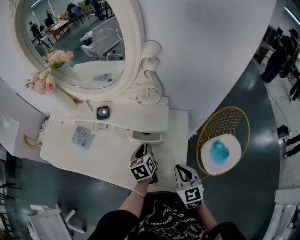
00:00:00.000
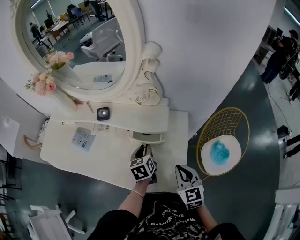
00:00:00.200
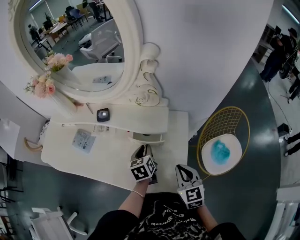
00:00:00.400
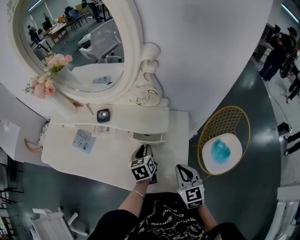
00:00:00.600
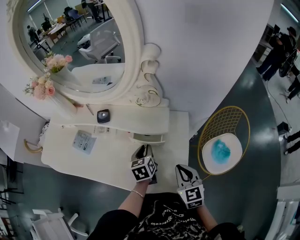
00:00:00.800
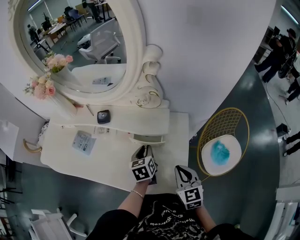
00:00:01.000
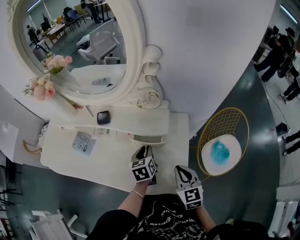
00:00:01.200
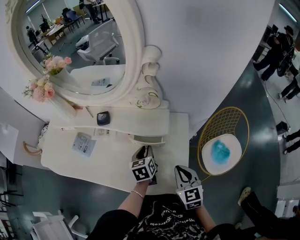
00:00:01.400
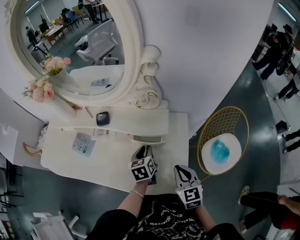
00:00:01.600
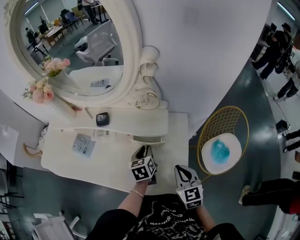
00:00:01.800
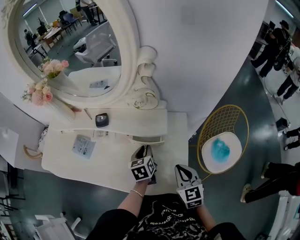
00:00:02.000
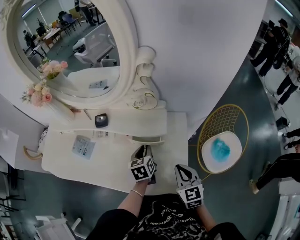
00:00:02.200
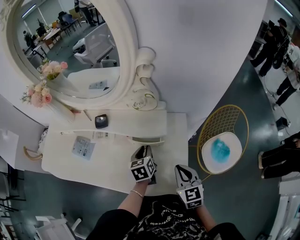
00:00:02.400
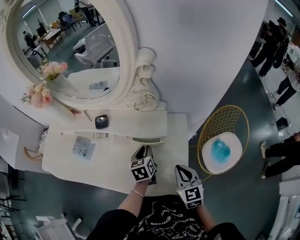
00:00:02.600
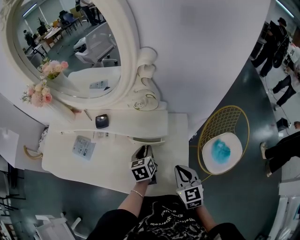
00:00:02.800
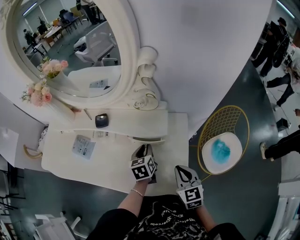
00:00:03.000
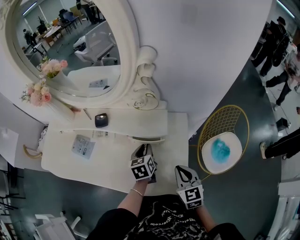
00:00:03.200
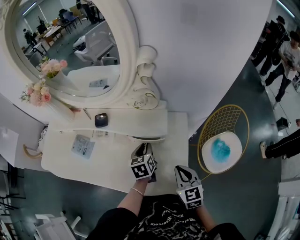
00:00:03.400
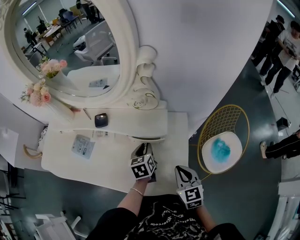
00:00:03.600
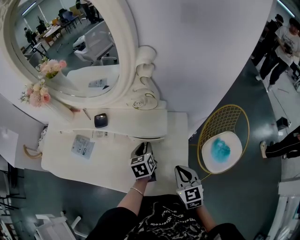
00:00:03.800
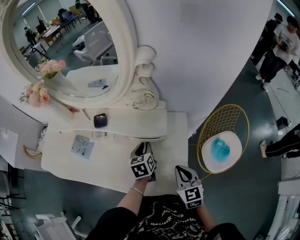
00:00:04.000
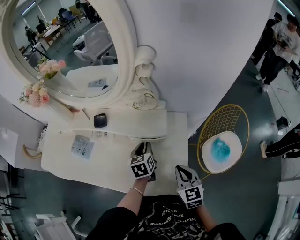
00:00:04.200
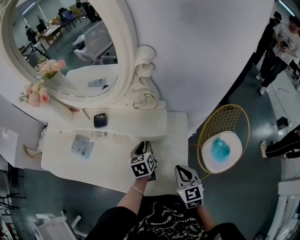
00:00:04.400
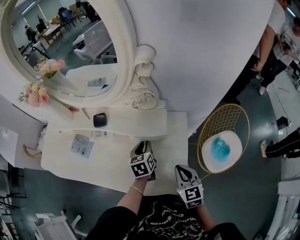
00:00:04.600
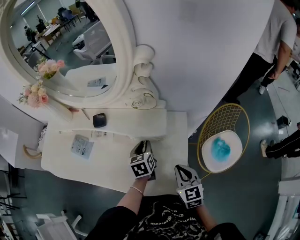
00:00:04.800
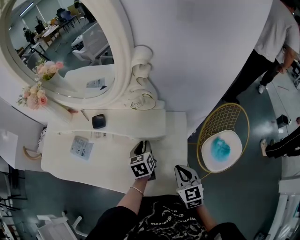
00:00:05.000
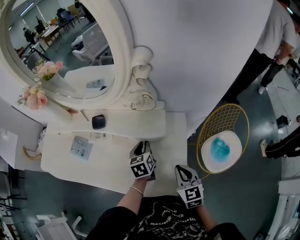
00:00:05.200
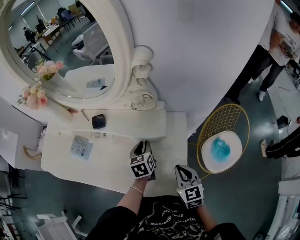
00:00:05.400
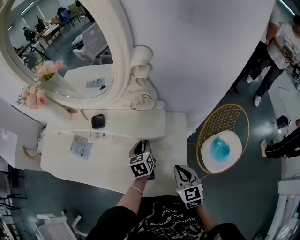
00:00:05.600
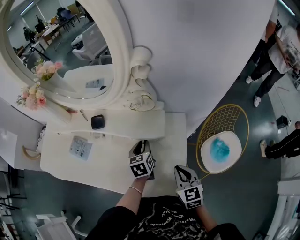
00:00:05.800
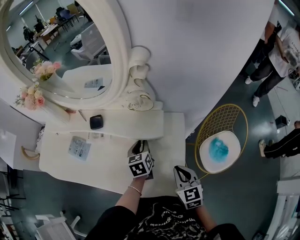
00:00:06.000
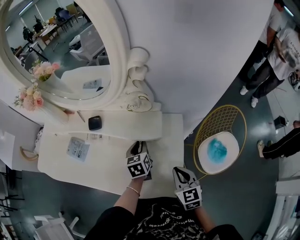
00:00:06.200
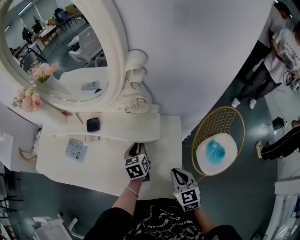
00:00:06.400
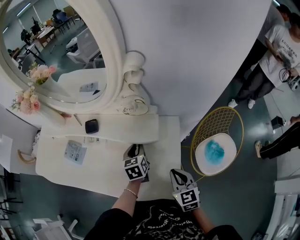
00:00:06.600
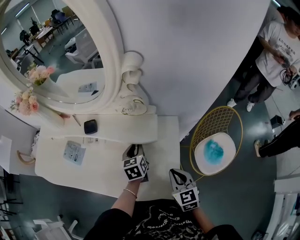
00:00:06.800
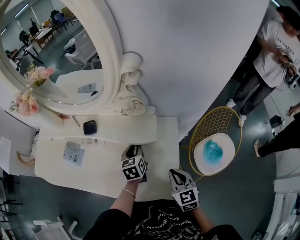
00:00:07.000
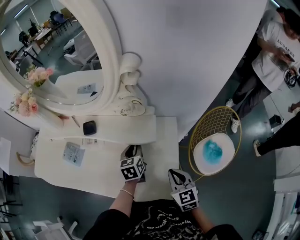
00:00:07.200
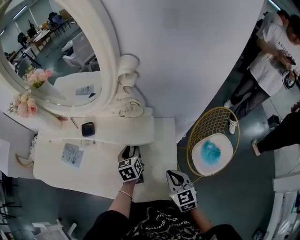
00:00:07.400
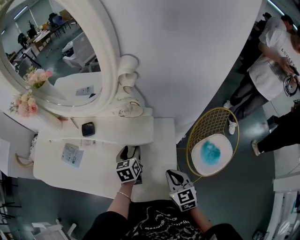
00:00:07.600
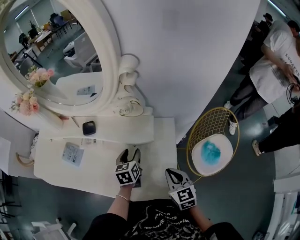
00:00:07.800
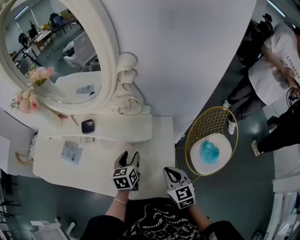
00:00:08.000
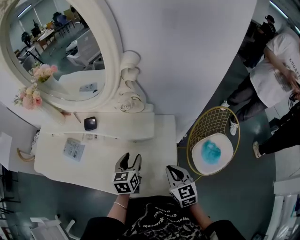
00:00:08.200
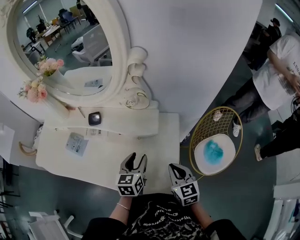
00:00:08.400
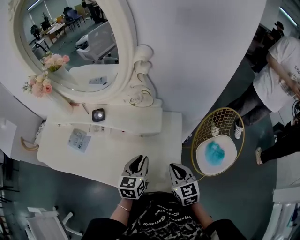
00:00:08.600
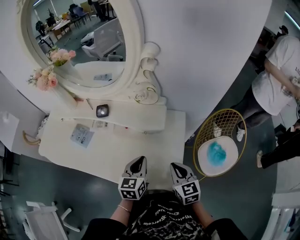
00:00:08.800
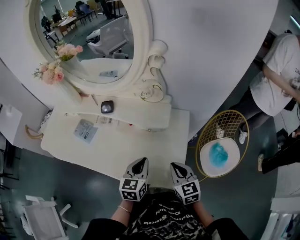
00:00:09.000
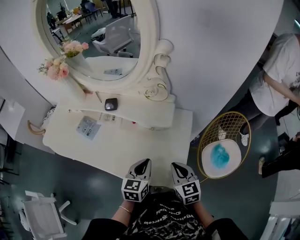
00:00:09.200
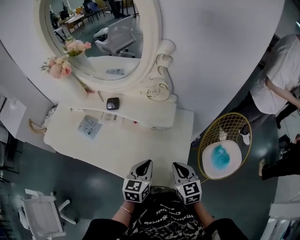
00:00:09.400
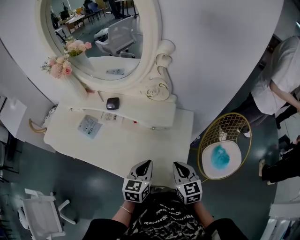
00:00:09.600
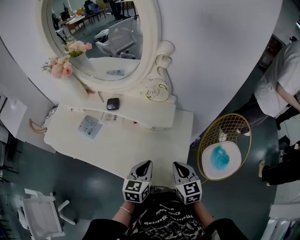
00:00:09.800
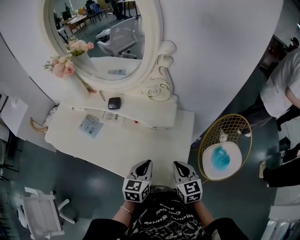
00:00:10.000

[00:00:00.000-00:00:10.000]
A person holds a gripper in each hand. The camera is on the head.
00:00:00.000 to 00:00:01.400: The grippers make only small movements.
00:00:01.400 to 00:00:02.800: The two grippers keep their place.
00:00:02.800 to 00:00:04.200: Both grippers stay put.
00:00:04.200 to 00:00:05.800: The two grippers keep their place.
00:00:05.800 to 00:00:07.200: Both grippers stay about where they are.
00:00:07.200 to 00:00:08.600: The left gripper travels backward by some 10 cm, and opens and closes again.
00:00:08.600 to 00:00:10.000: The left gripper shifts some 5 cm backward.

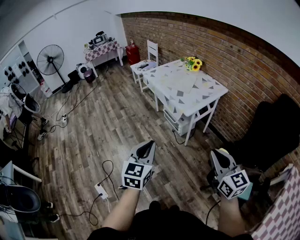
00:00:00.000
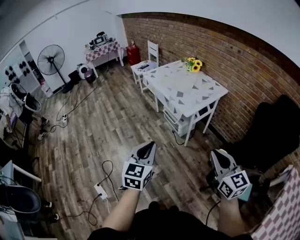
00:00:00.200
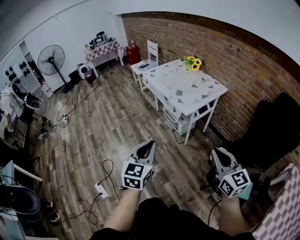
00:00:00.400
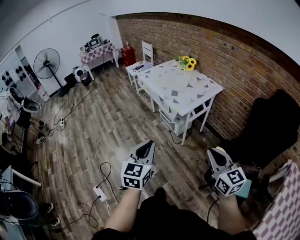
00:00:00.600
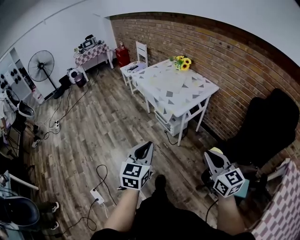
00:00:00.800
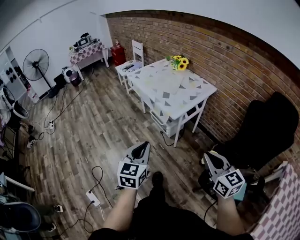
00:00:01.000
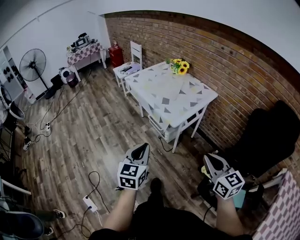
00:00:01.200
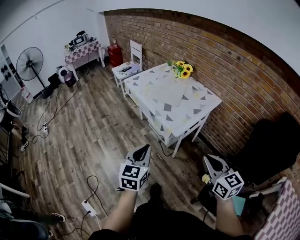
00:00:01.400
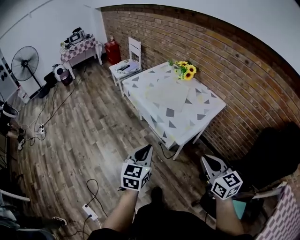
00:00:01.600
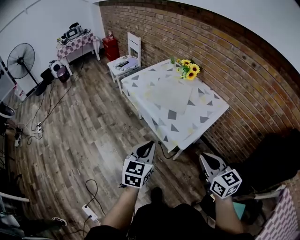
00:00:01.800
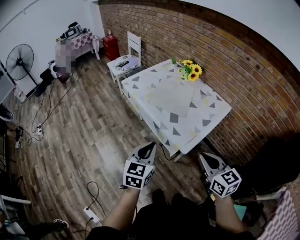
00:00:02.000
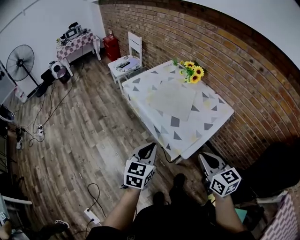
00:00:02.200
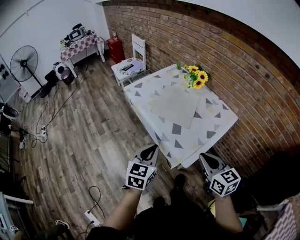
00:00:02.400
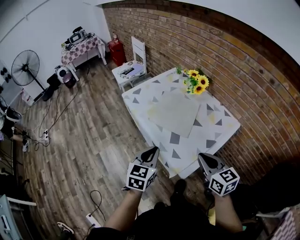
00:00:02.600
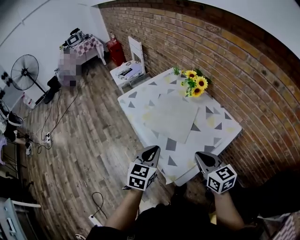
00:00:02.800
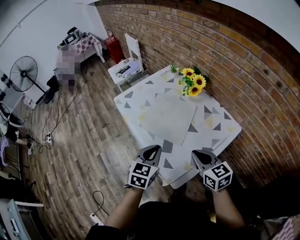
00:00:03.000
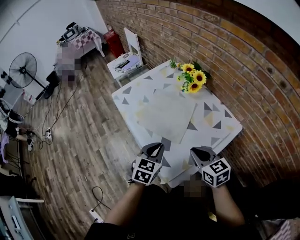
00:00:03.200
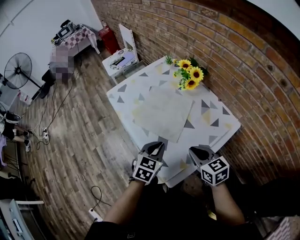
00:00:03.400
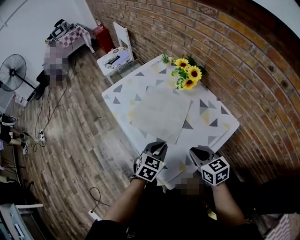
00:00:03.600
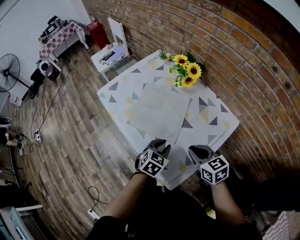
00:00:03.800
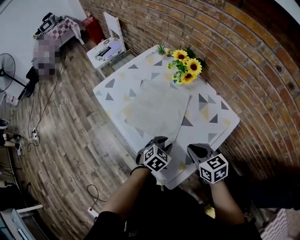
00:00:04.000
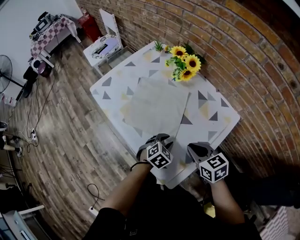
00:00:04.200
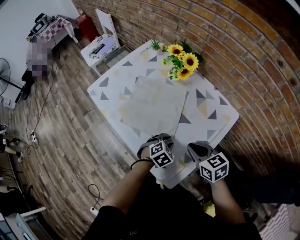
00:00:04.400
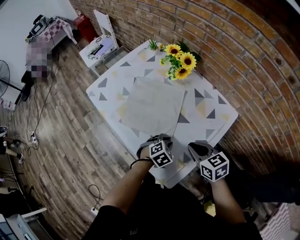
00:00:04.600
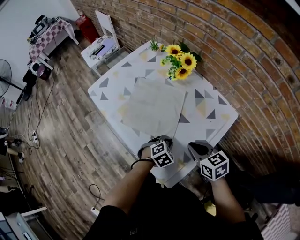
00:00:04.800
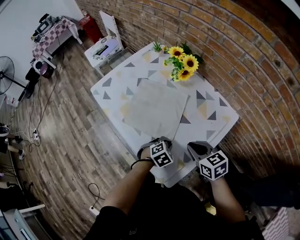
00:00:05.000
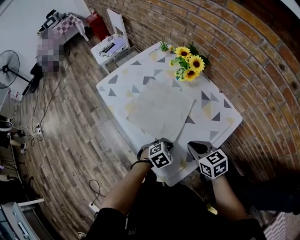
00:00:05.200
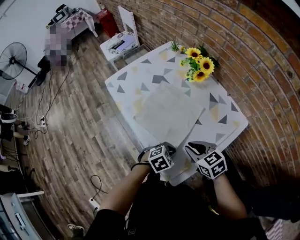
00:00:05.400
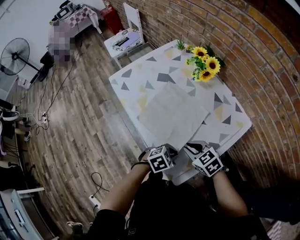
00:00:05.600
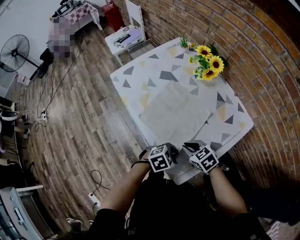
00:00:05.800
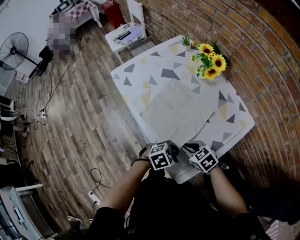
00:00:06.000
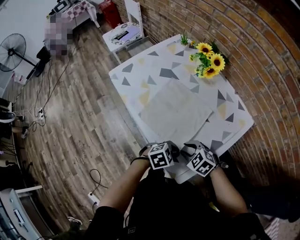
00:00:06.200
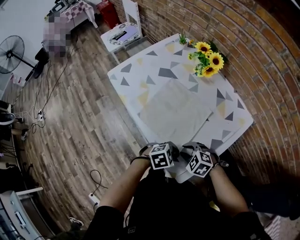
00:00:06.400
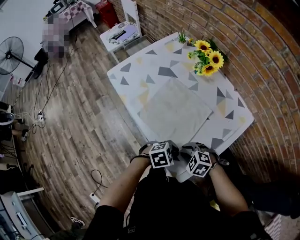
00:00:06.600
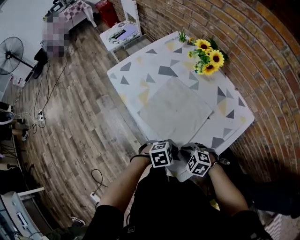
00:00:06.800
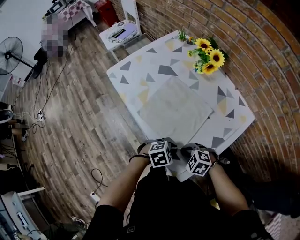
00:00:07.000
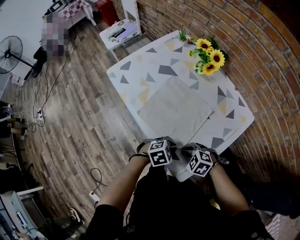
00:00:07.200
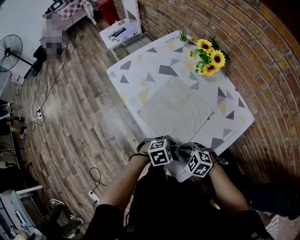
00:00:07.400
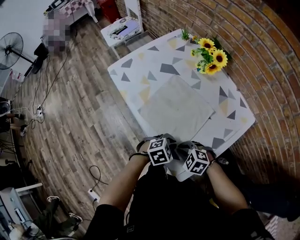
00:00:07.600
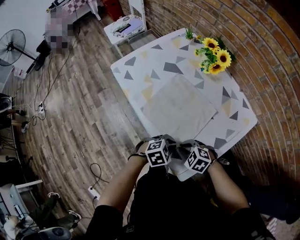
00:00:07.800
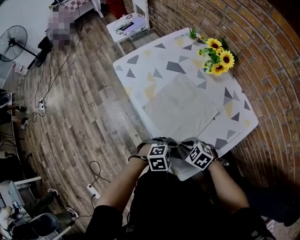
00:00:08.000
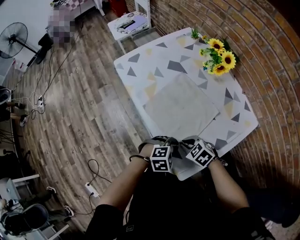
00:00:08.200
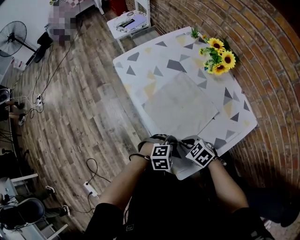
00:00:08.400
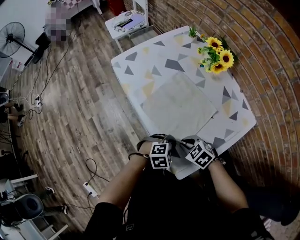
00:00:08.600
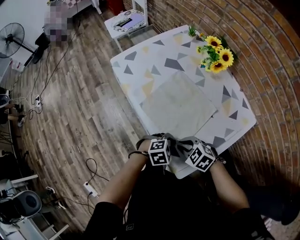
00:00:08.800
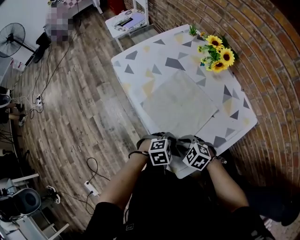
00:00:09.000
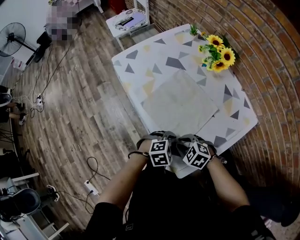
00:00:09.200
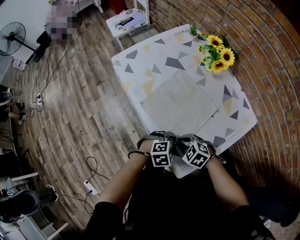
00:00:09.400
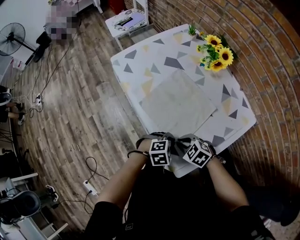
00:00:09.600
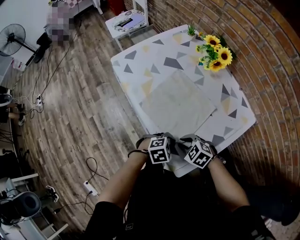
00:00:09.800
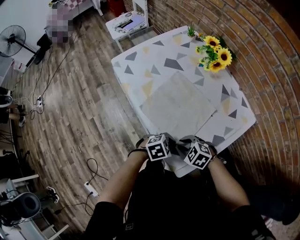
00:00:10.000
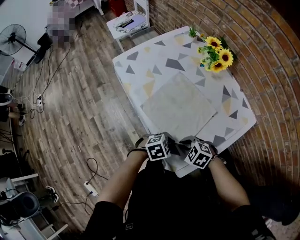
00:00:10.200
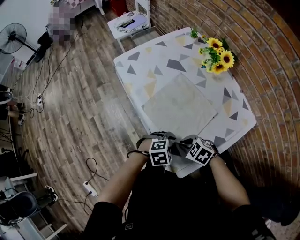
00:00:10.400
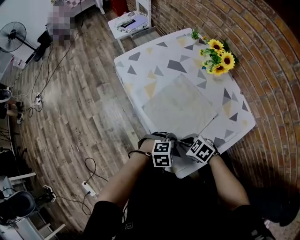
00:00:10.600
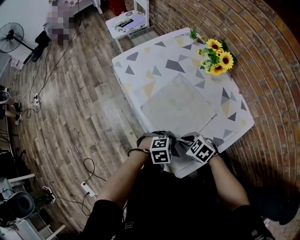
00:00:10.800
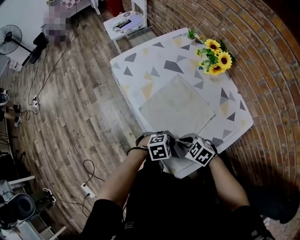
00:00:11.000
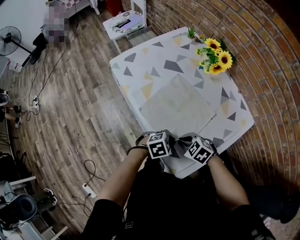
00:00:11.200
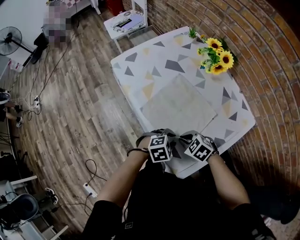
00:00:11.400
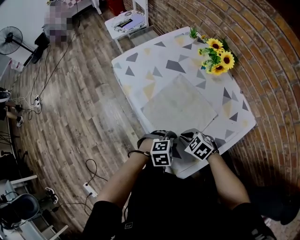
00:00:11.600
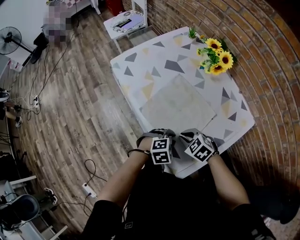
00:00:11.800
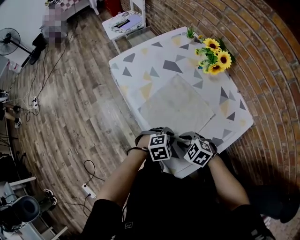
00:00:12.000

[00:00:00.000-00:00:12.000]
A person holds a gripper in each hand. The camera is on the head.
00:00:00.000 to 00:00:01.600: The grippers both shift forward by roughly 25 cm.
00:00:01.600 to 00:00:03.000: The two grippers go roughly 30 cm forward.
00:00:03.000 to 00:00:04.400: The left gripper moves downward and to the right, some 25 cm, tips its fingers downward by roughly 30 degrees, and opens up. Meanwhile the right gripper goes about 10 cm downward.
00:00:04.400 to 00:00:06.000: The right gripper moves roughly 15 cm, and rotates approximately 30 degrees. The left gripper ends up about 10 cm from where it was, and closes its fingers.
00:00:06.000 to 00:00:07.600: The right gripper moves approximately 5 cm, and swivels some 30 degrees.
00:00:07.600 to 00:00:09.000: The grippers make only small movements.
00:00:09.000 to 00:00:10.400: The left gripper opens its fingers.
00:00:10.400 to 00:00:12.000: There are only small adjustments of the grippers.

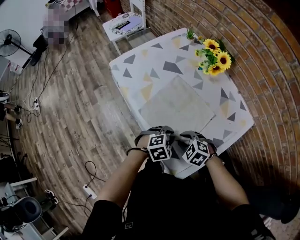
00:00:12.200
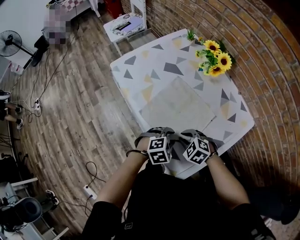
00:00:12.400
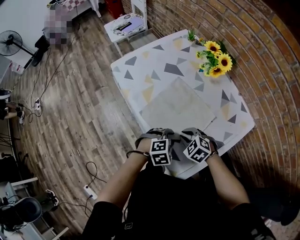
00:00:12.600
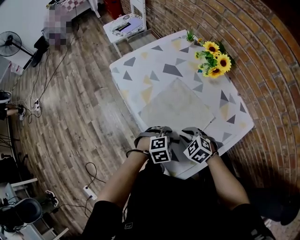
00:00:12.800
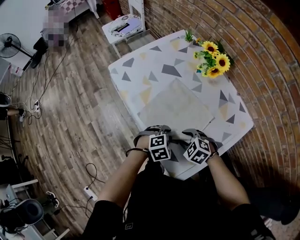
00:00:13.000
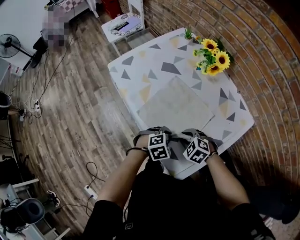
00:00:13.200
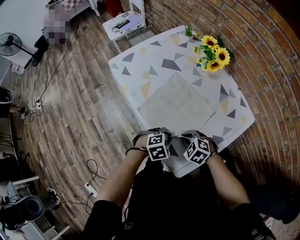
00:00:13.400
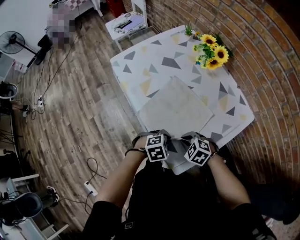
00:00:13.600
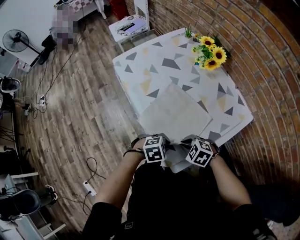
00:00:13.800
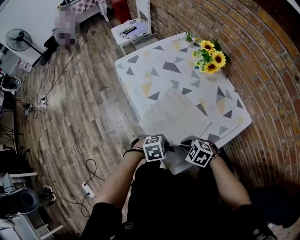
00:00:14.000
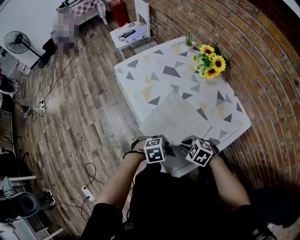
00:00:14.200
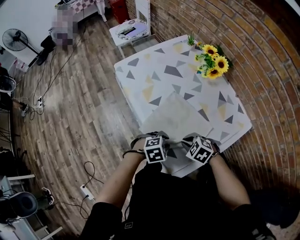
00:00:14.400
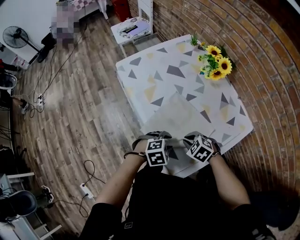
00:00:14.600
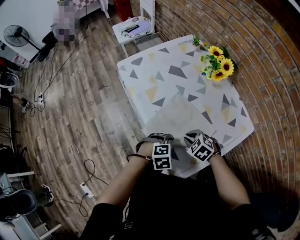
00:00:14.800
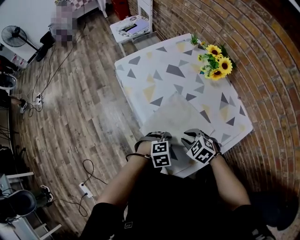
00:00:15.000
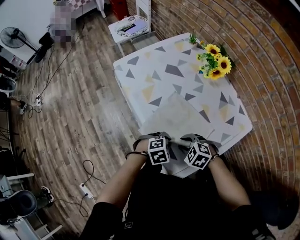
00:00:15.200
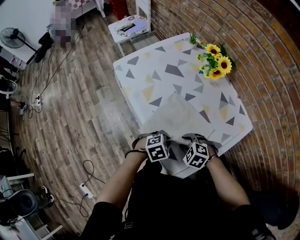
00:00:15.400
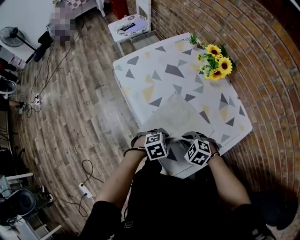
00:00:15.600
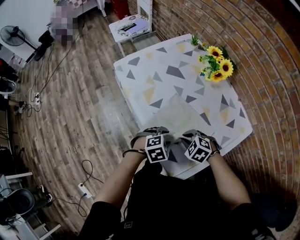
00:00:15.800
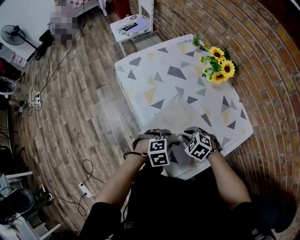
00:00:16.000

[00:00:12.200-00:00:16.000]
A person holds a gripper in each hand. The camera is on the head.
00:00:12.200 to 00:00:13.400: The right gripper closes.
00:00:13.400 to 00:00:14.800: The left gripper opens its fingers.
00:00:14.800 to 00:00:16.000: The left gripper closes, then reopens.
